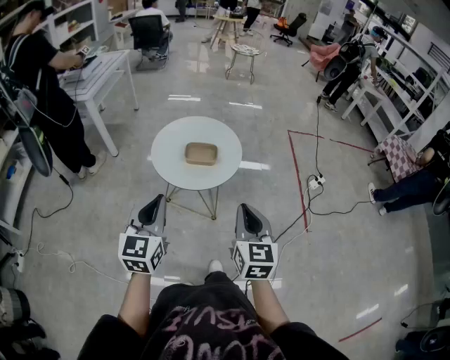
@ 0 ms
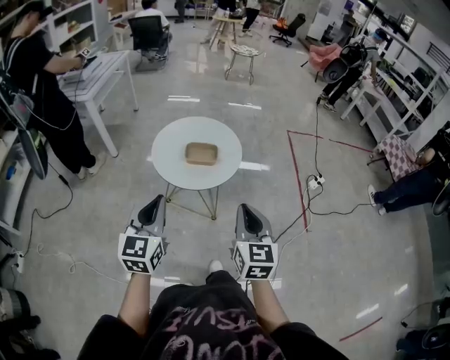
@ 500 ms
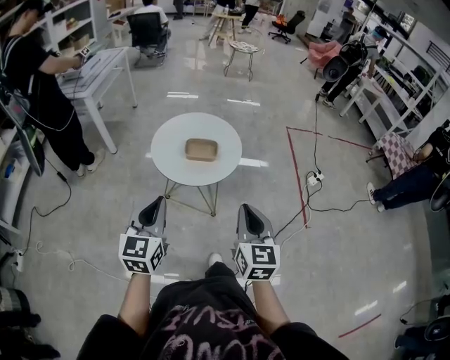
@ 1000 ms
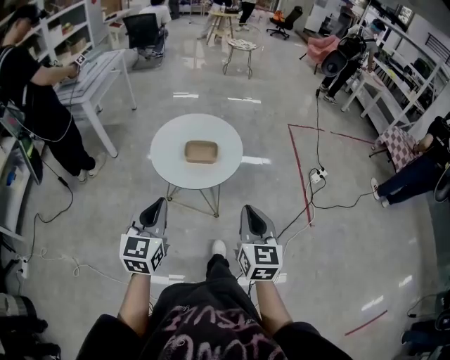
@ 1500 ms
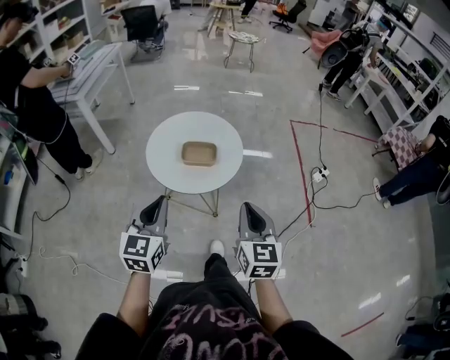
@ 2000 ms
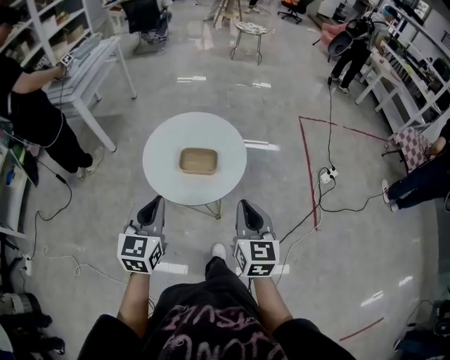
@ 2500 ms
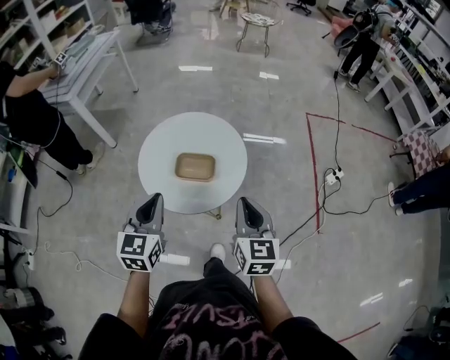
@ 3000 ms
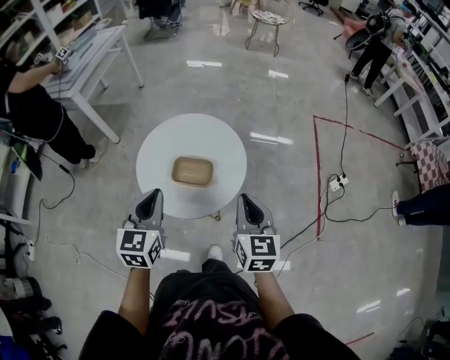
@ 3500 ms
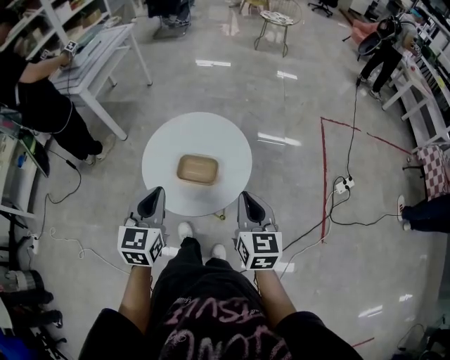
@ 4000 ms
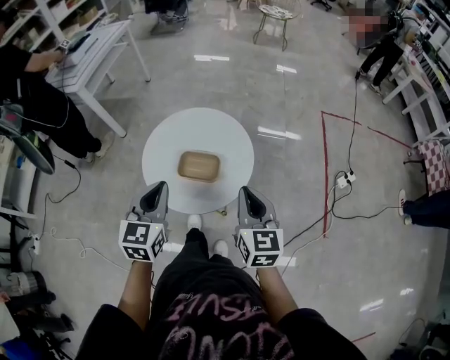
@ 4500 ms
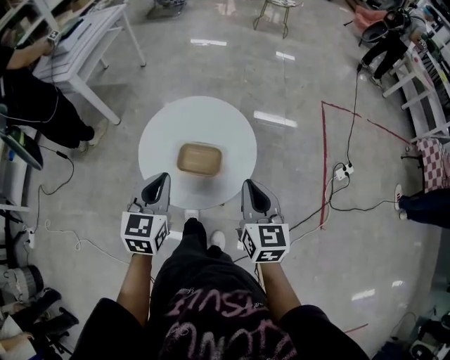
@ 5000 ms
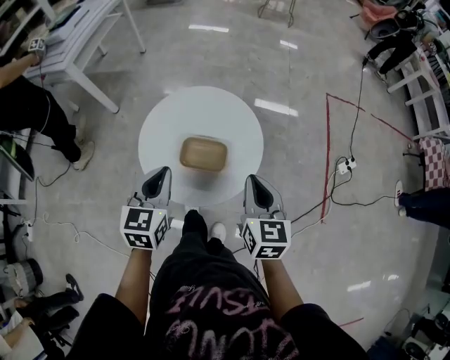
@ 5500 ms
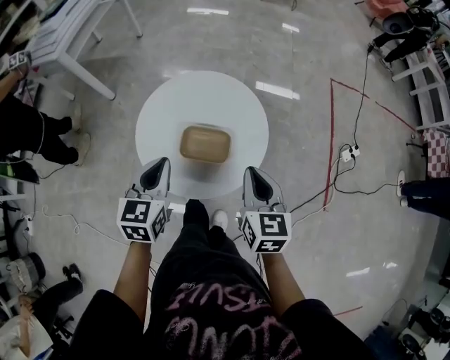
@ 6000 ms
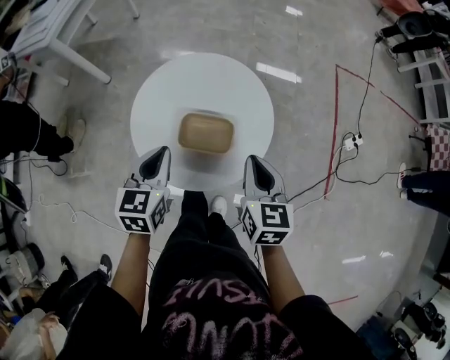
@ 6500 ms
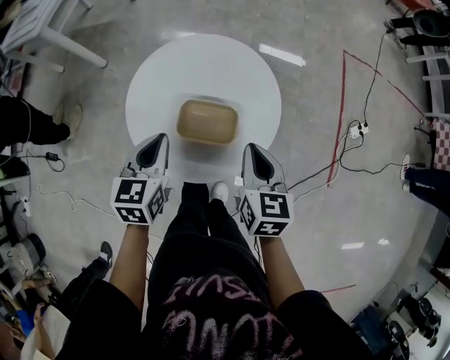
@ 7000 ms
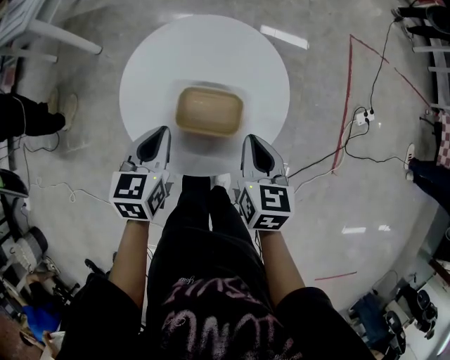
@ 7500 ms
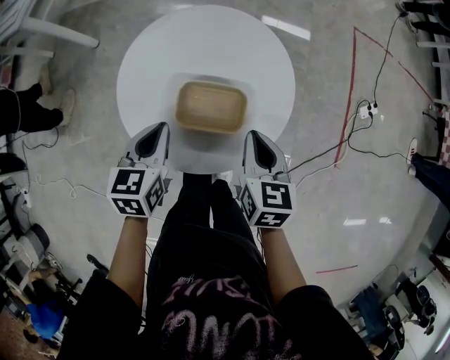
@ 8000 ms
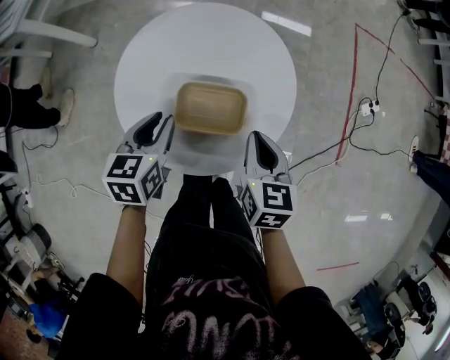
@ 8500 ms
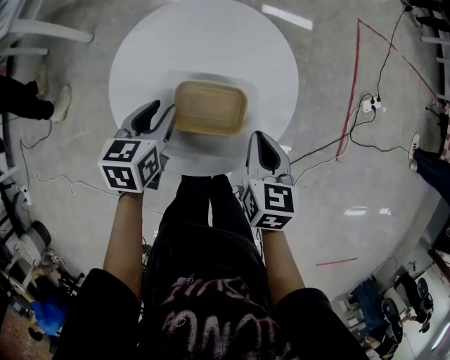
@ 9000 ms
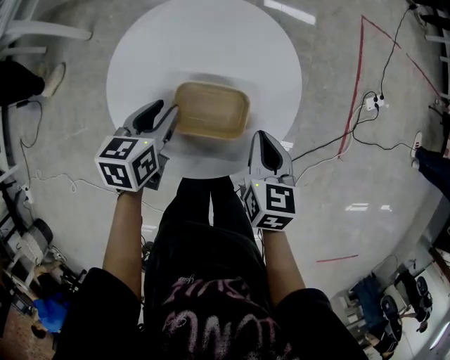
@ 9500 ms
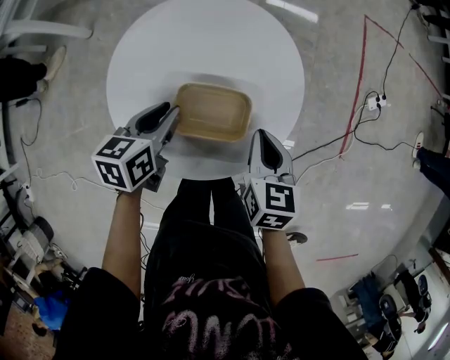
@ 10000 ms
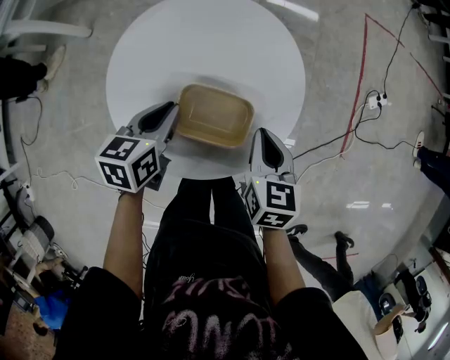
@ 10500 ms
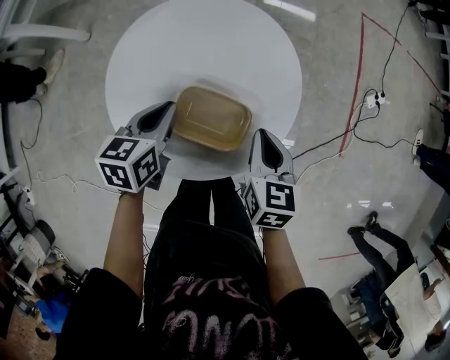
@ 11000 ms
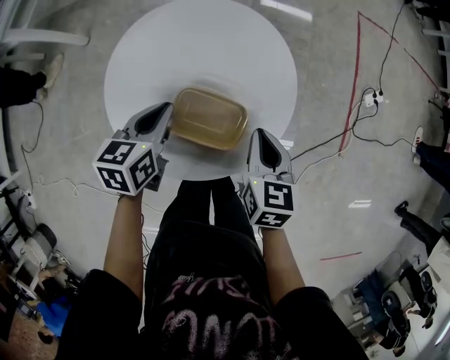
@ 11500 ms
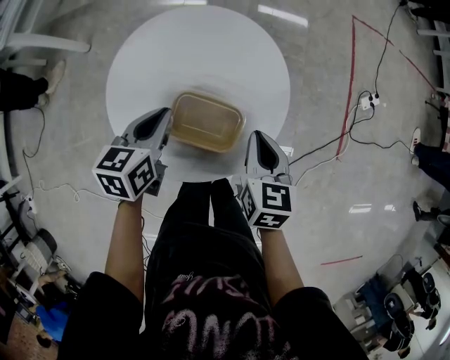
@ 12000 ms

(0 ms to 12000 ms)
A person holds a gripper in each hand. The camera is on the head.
0 ms - 2000 ms: The two grippers go roughly 5 cm forward.
2000 ms - 4000 ms: Both grippers travel together forward, approximately 20 cm.
4000 ms - 6000 ms: The two grippers go approximately 10 cm downward and forward.
6000 ms - 8000 ms: Both grippers travel together downward, approximately 10 cm.
8000 ms - 10000 ms: The left gripper moves forward, about 5 cm, and opens its fingers.
10000 ms - 12000 ms: The left gripper closes its fingers.

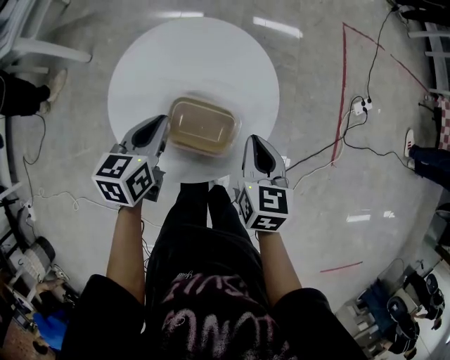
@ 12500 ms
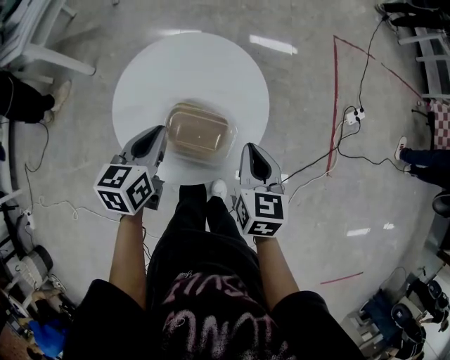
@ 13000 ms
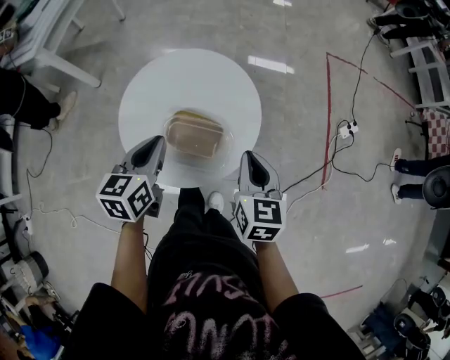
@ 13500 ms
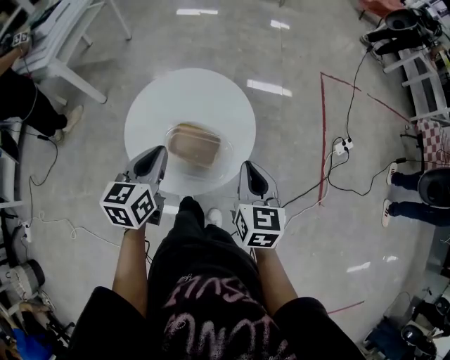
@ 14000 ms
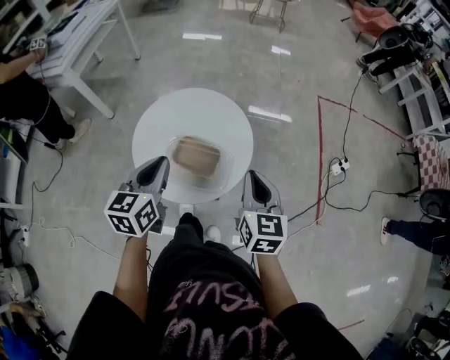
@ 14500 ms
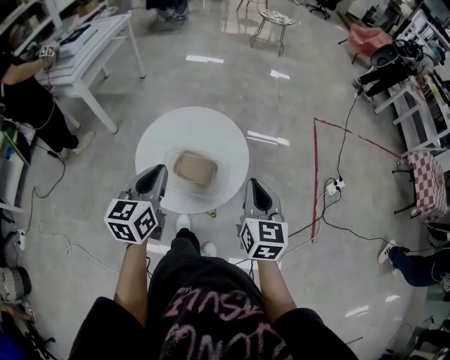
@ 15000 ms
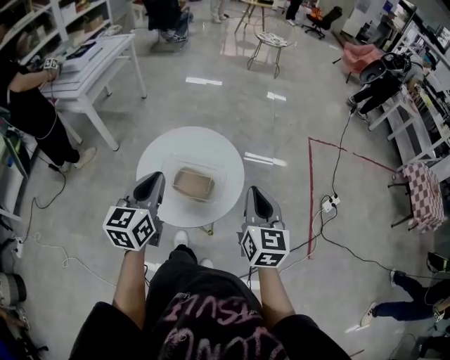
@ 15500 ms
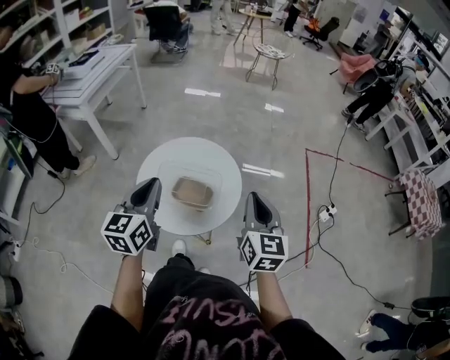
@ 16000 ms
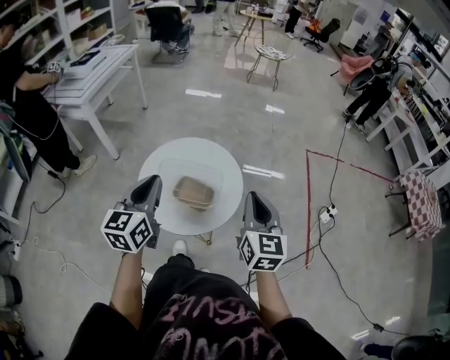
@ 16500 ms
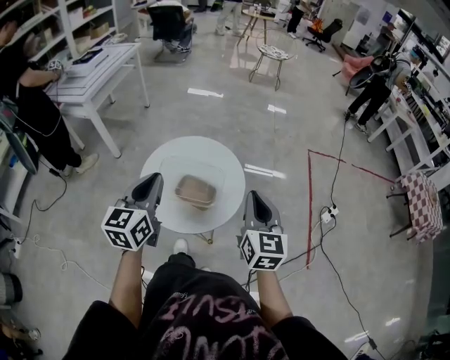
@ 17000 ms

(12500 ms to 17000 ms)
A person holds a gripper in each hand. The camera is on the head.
12500 ms - 14500 ms: Both grippers travel together upward and backward, some 20 cm.
14500 ms - 17000 ms: The two grippers go approximately 10 cm upward.

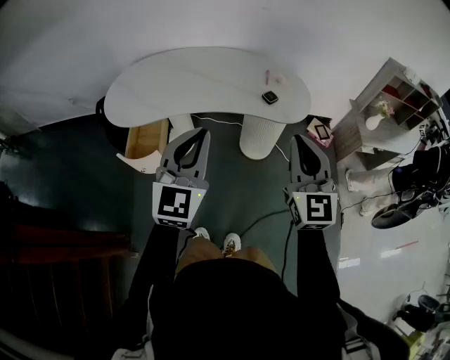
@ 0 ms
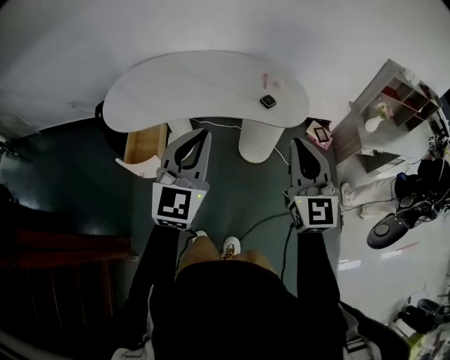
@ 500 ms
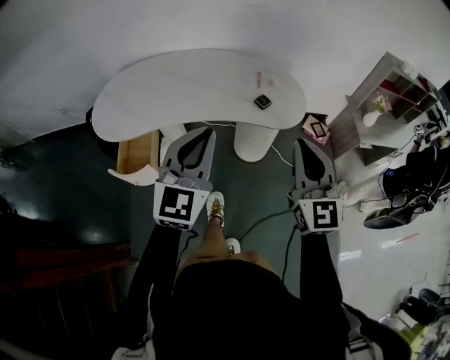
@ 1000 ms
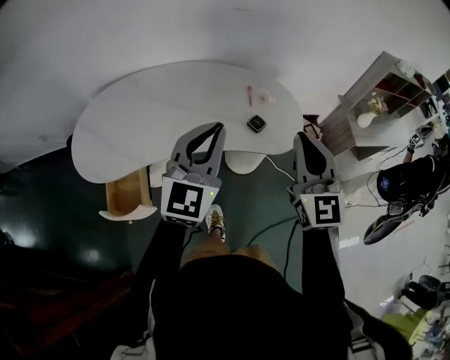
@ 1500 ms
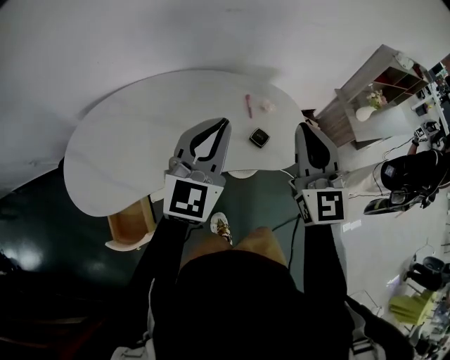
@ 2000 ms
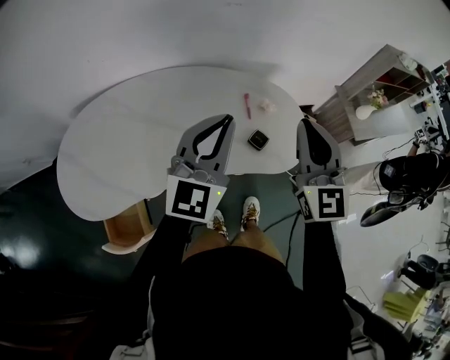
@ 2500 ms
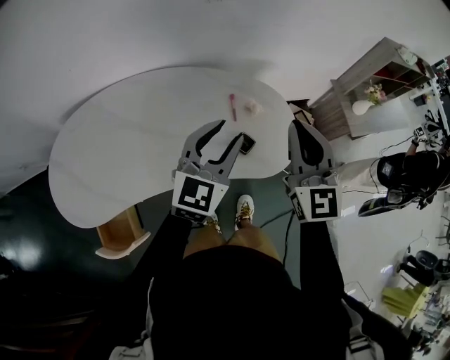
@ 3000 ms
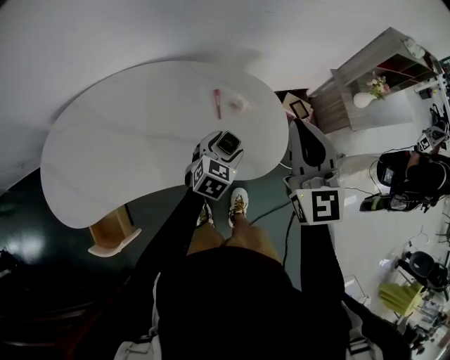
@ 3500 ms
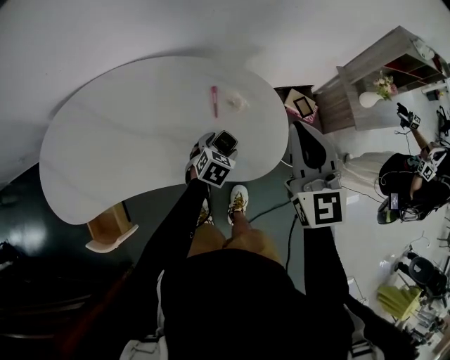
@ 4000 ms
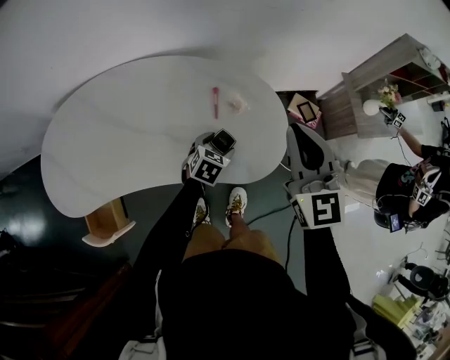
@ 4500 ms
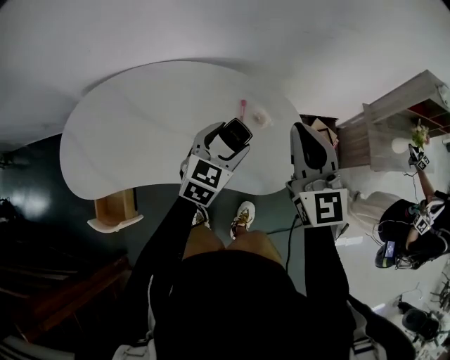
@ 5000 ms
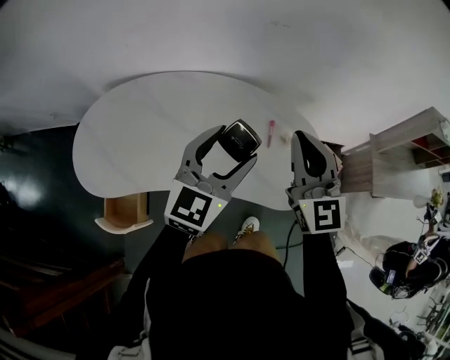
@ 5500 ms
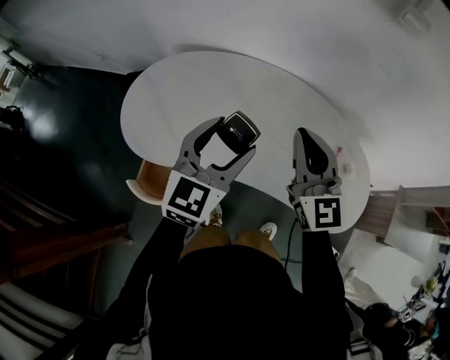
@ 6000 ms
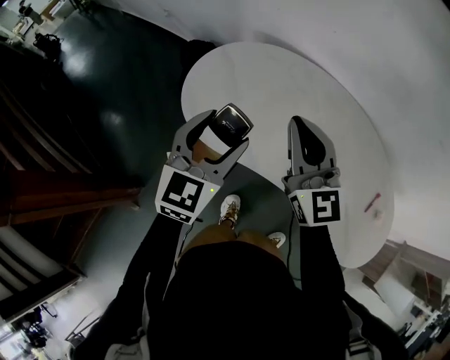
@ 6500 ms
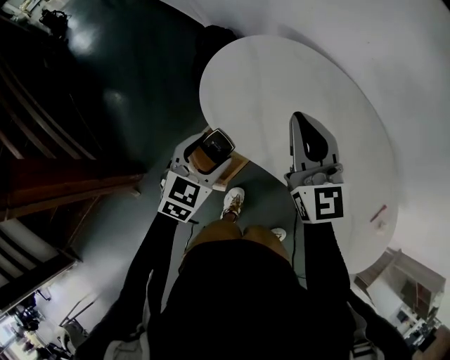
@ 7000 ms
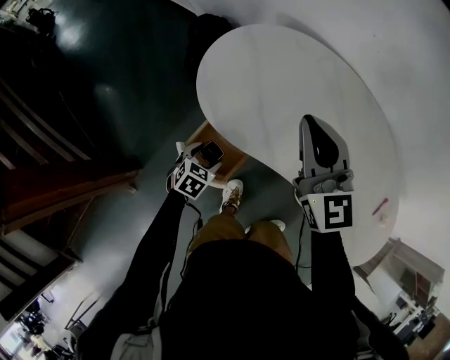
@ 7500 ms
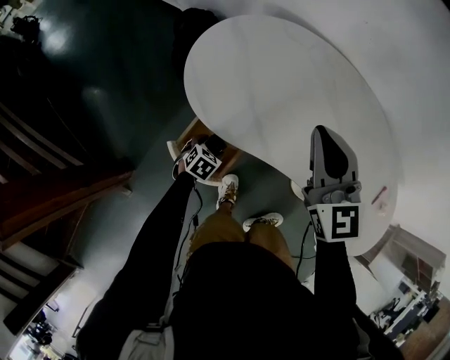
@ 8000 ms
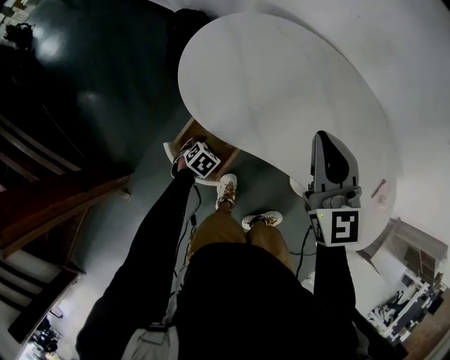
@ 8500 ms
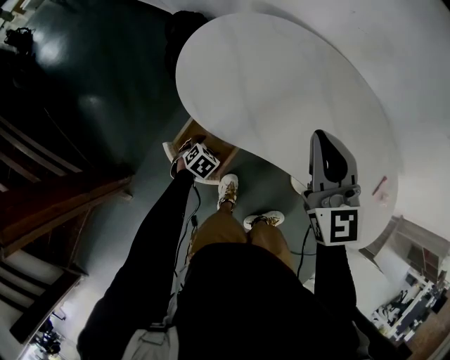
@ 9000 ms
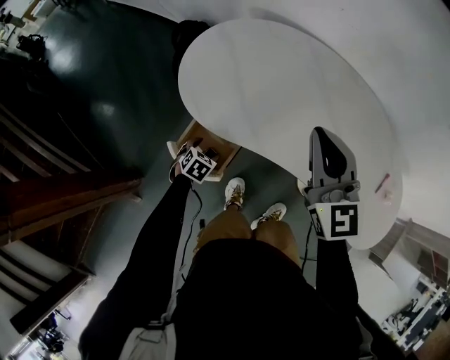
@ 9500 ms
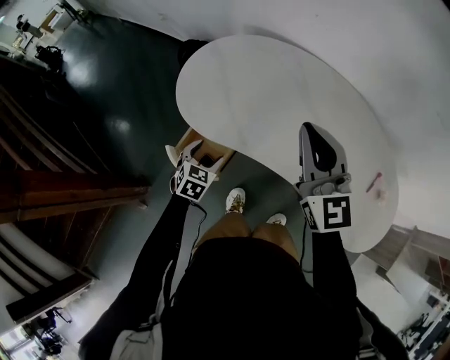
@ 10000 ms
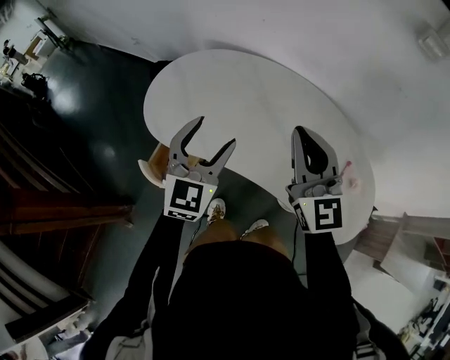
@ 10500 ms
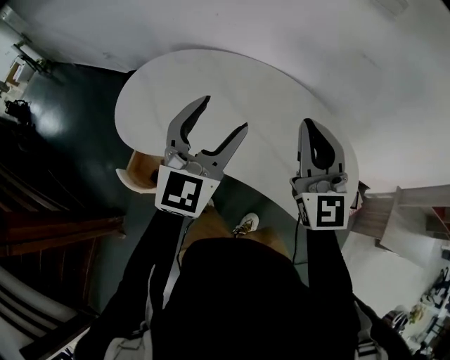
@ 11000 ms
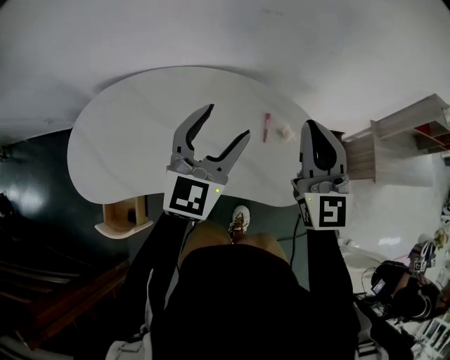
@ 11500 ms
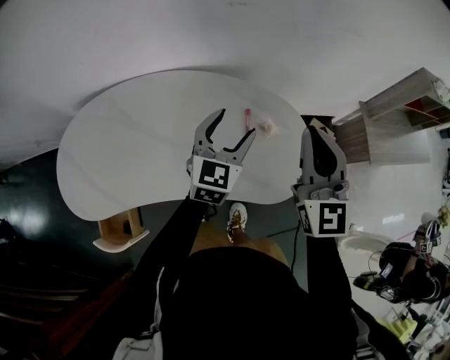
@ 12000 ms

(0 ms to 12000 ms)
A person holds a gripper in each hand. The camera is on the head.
0 ms - 2000 ms: Both grippers travel together forward, about 30 cm. The left gripper turns by some 20 degrees.
2000 ms - 4000 ms: The right gripper shifts roughly 20 cm forward, to the right and downward, while the left gripper shifts roughly 40 cm downward, tips its fingers downward by about 50 degrees, and opens up.
4000 ms - 6000 ms: The left gripper moves some 50 cm, and angles its fingers upward, by some 40 degrees, while the right gripper moves approximately 35 cm, and swivels roughly 30 degrees.
6000 ms - 8000 ms: The right gripper heads to the left, covering roughly 25 cm, and turns by some 20 degrees; the left gripper moves downward and to the left, roughly 50 cm, and tilts its fingers some 50 degrees downward.
8000 ms - 10000 ms: The right gripper is displaced to the right, backward and upward by some 15 cm. Meanwhile the left gripper is displaced upward by approximately 15 cm, and changes its angle by approximately 20 degrees.
10000 ms - 12000 ms: The pair of grippers is taken some 50 cm. The left gripper changes its angle by approximately 50 degrees. Meanwhile the right gripper changes its angle by approximately 50 degrees.
